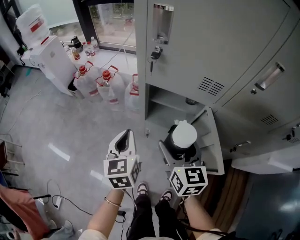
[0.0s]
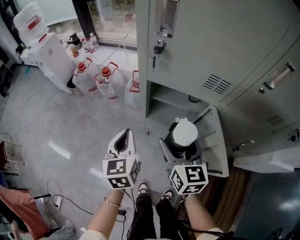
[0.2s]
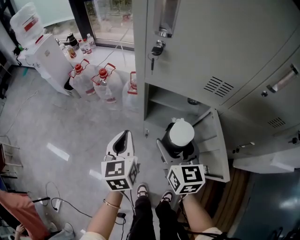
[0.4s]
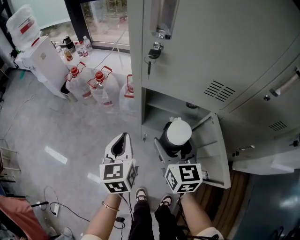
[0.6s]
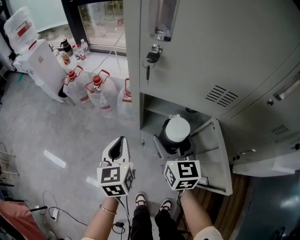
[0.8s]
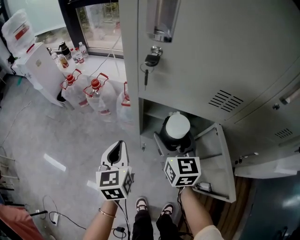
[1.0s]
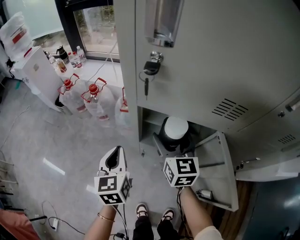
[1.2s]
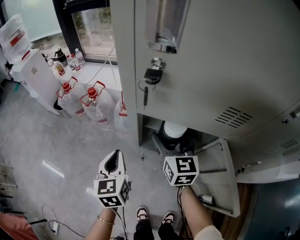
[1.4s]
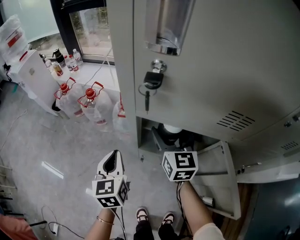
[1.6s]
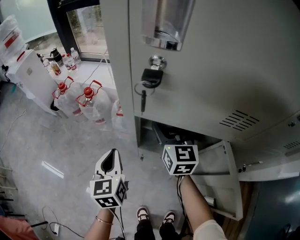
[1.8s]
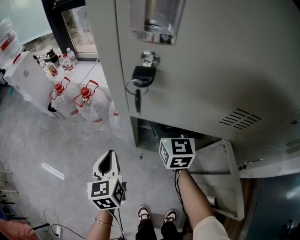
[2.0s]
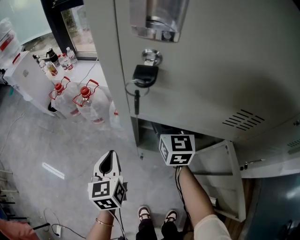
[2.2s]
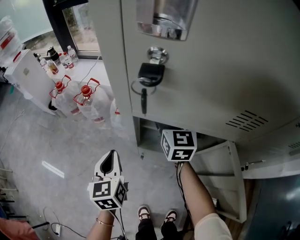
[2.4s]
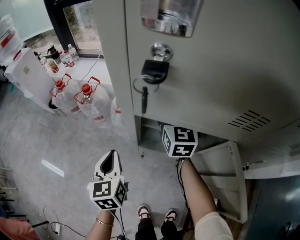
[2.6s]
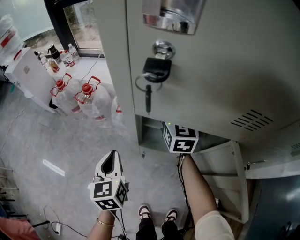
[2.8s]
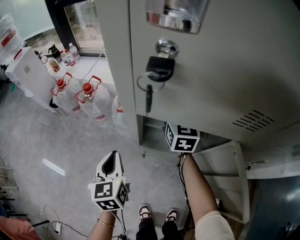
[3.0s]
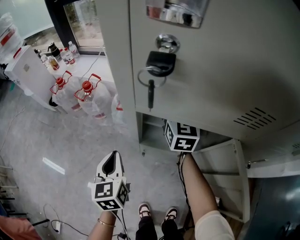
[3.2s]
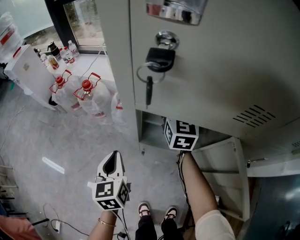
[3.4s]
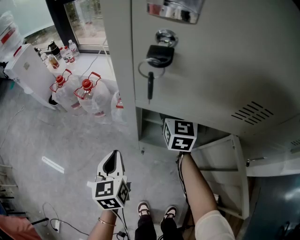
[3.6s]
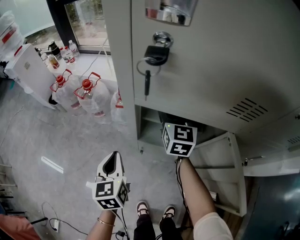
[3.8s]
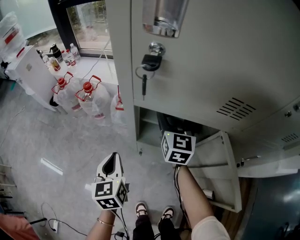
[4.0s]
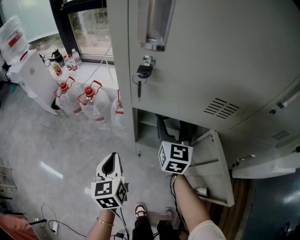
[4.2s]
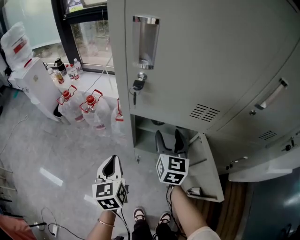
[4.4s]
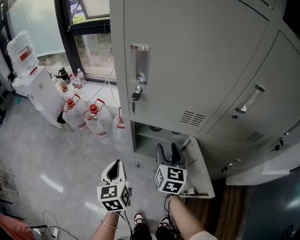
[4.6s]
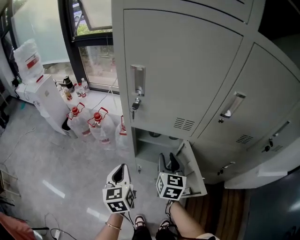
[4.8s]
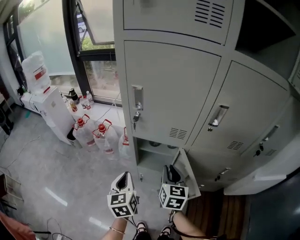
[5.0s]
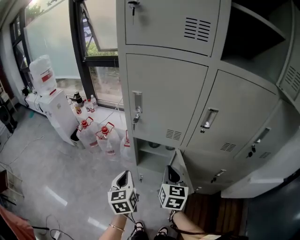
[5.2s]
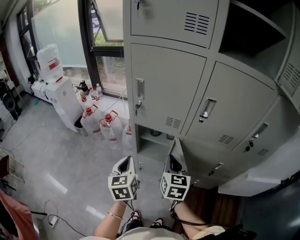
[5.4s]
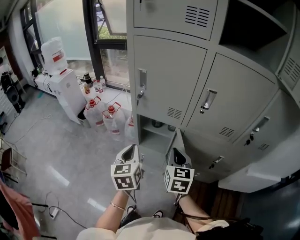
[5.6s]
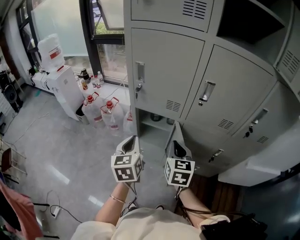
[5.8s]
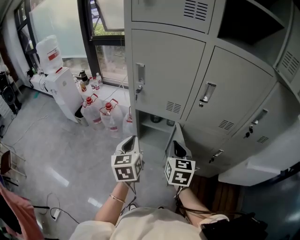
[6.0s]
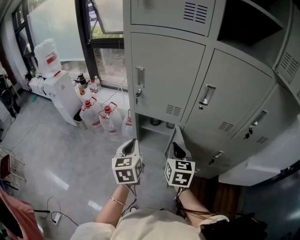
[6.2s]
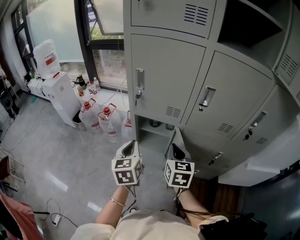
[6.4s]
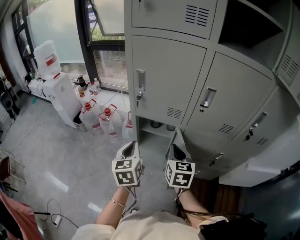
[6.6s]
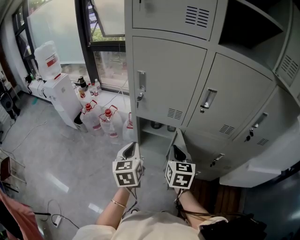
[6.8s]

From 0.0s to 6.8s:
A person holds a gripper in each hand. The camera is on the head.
From 0.0s to 1.4s: The right gripper shifts some 20 cm forward and downward; the left gripper moves downward and forward, about 15 cm.
From 1.4s to 2.8s: The right gripper goes roughly 10 cm forward.
From 2.8s to 4.0s: The right gripper is displaced backward by approximately 5 cm.
From 4.0s to 5.4s: The right gripper is displaced backward and upward by roughly 30 cm, and closes. Meanwhile the left gripper is displaced upward and backward by about 25 cm.
From 5.4s to 6.8s: There are only small adjustments of the grippers.

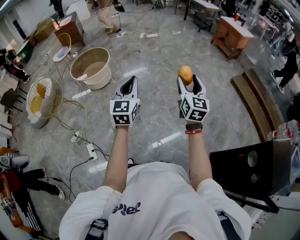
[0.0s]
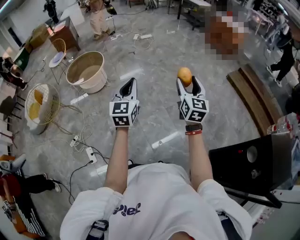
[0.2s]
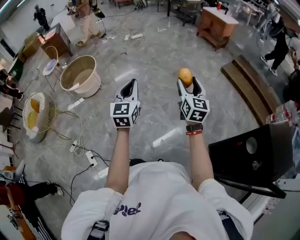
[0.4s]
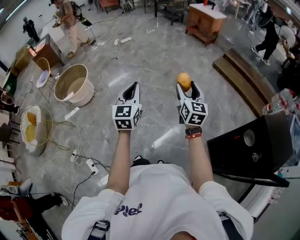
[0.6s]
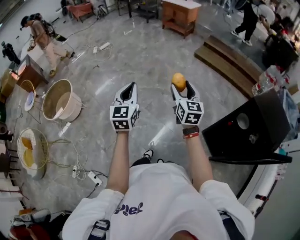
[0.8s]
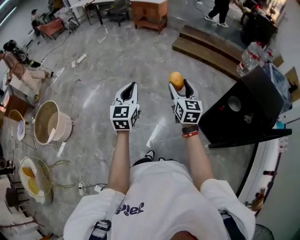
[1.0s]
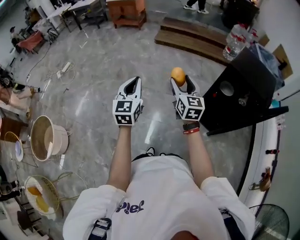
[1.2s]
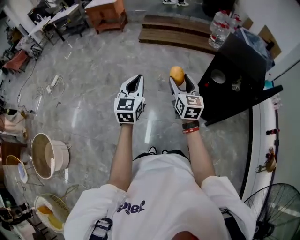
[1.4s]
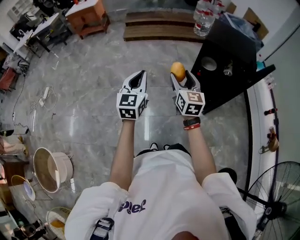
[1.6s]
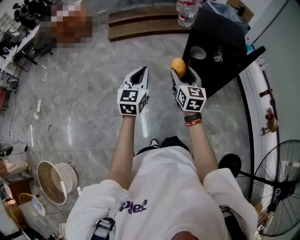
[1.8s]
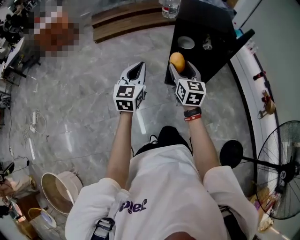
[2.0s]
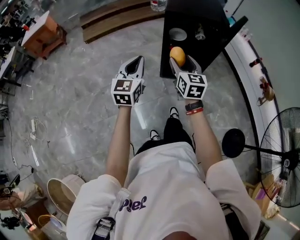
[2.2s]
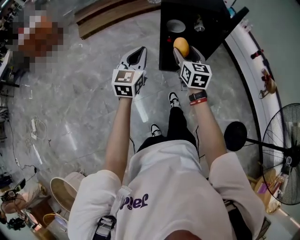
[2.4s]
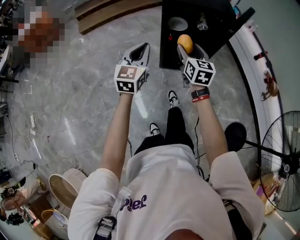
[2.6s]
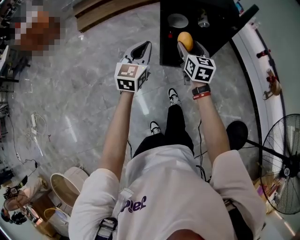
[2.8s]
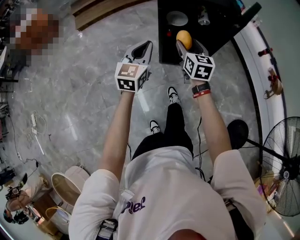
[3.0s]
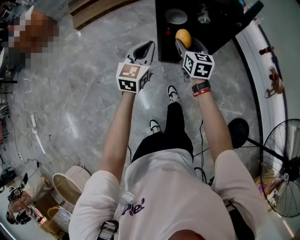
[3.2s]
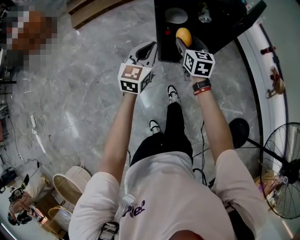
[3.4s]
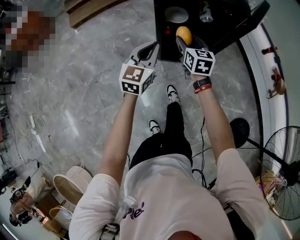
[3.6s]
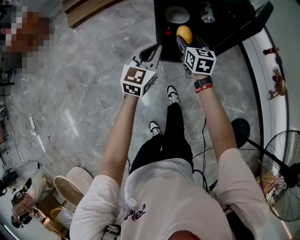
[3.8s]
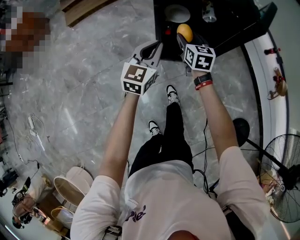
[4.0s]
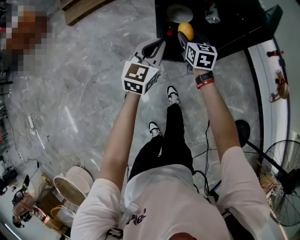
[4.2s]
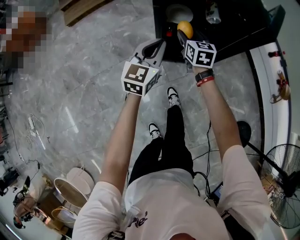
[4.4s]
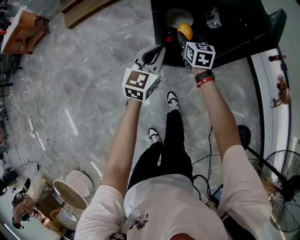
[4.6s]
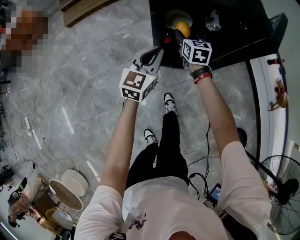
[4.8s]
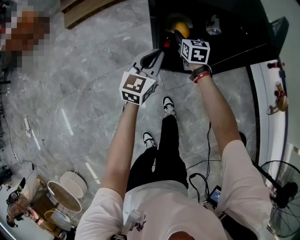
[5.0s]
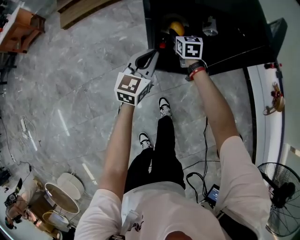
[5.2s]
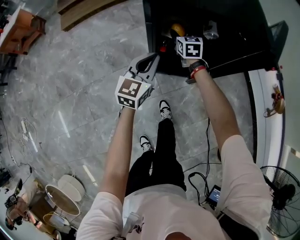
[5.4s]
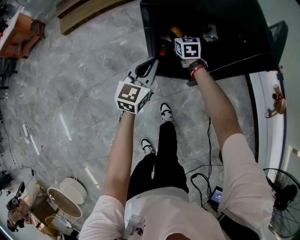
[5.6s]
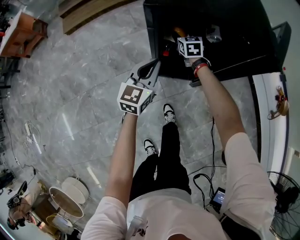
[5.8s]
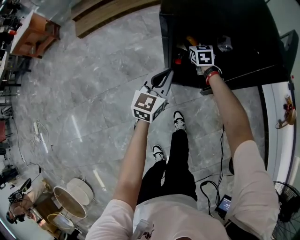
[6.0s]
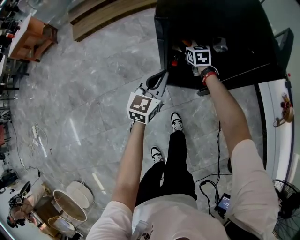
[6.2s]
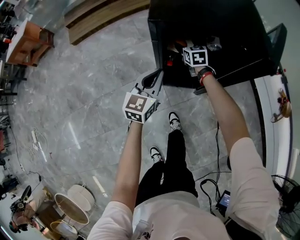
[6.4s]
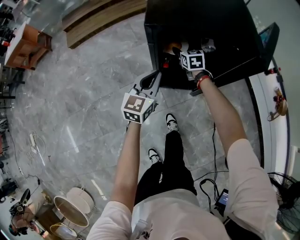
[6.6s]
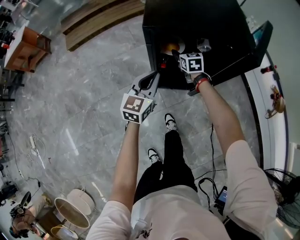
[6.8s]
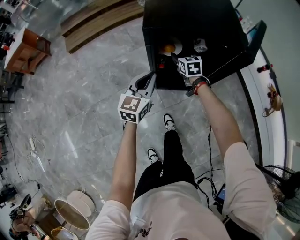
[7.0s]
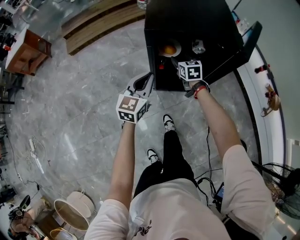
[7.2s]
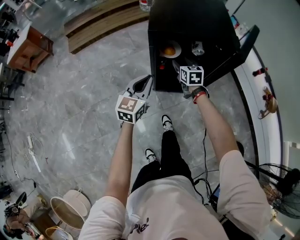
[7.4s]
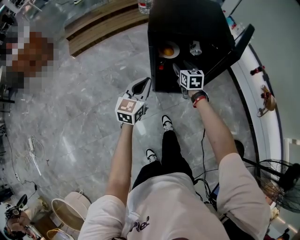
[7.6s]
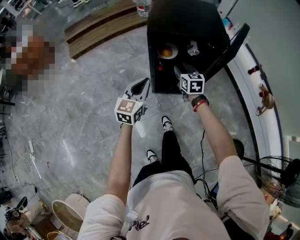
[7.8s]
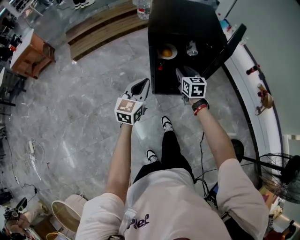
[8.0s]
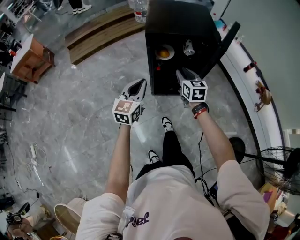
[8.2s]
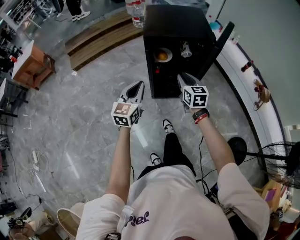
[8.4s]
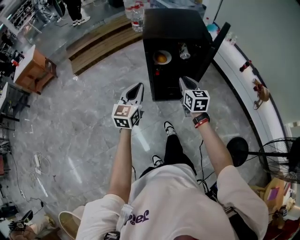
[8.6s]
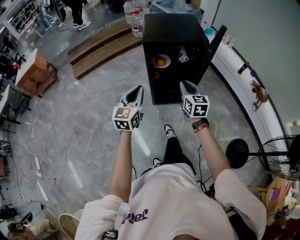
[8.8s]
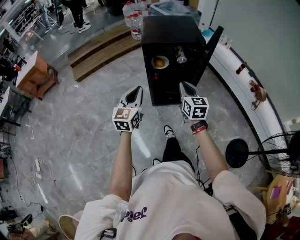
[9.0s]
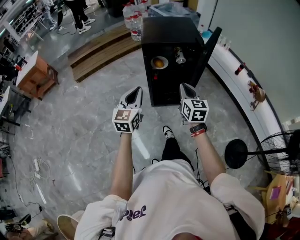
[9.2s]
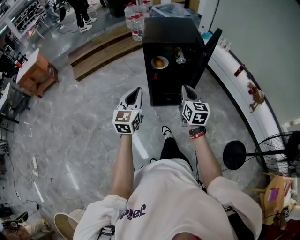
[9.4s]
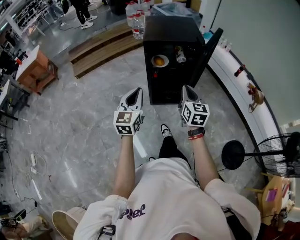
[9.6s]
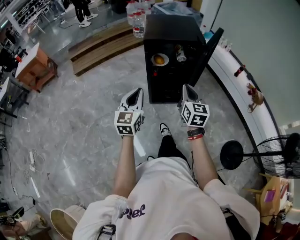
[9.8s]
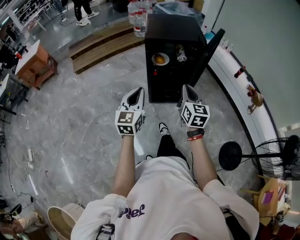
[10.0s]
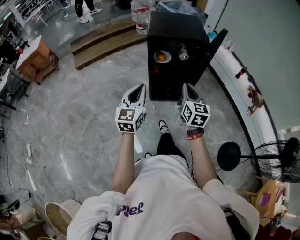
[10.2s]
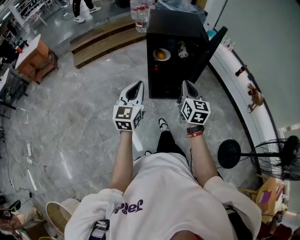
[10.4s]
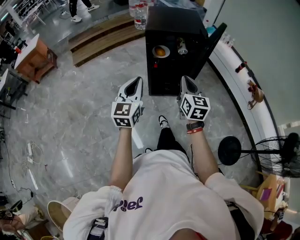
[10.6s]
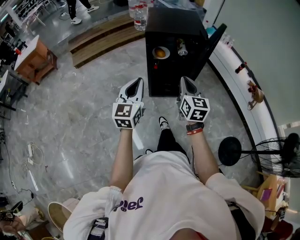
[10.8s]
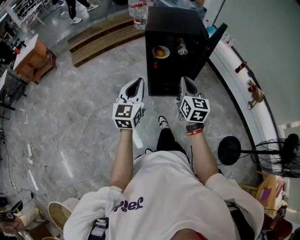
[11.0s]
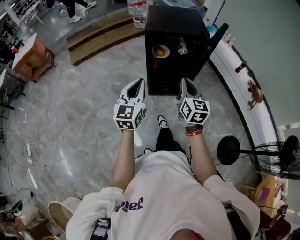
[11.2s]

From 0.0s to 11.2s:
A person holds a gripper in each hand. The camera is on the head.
From 0.0s to 1.6s: The left gripper moves approximately 50 cm, and changes its angle by about 70 degrees, while the right gripper shifts by approximately 40 cm, and turns by roughly 60 degrees.
From 1.6s to 3.2s: The right gripper ends up approximately 35 cm from where it was, and swivels some 30 degrees; the left gripper ends up approximately 35 cm from where it was, and rotates roughly 30 degrees.
From 3.2s to 4.8s: Both grippers move forward and downward, about 25 cm.
From 4.8s to 6.4s: The right gripper travels forward by some 10 cm.
From 6.4s to 8.0s: The two grippers go roughly 25 cm backward and upward. The right gripper closes.
From 8.0s to 9.6s: Both grippers move backward and upward, roughly 25 cm. The right gripper closes.
From 9.6s to 11.2s: There are only small adjustments of the grippers.

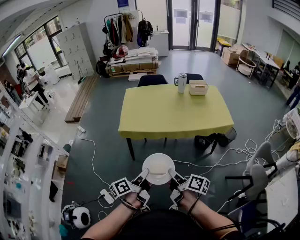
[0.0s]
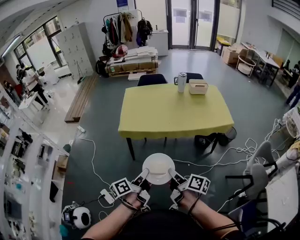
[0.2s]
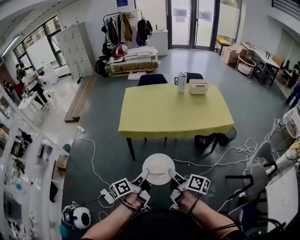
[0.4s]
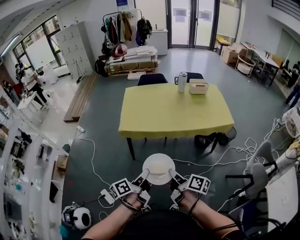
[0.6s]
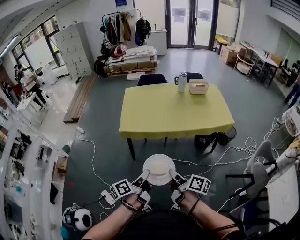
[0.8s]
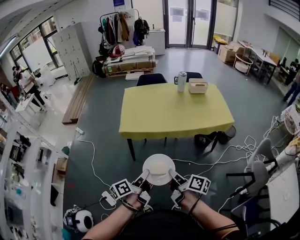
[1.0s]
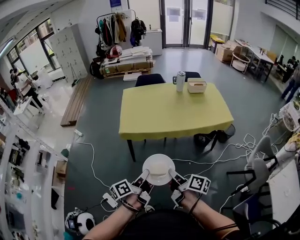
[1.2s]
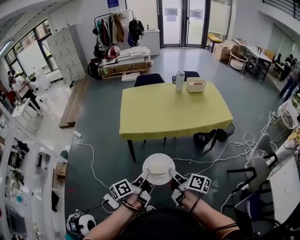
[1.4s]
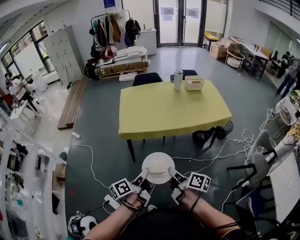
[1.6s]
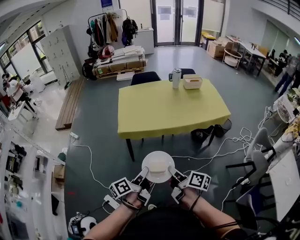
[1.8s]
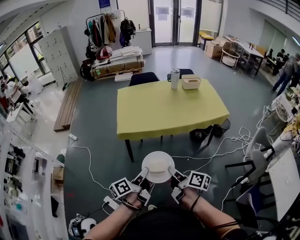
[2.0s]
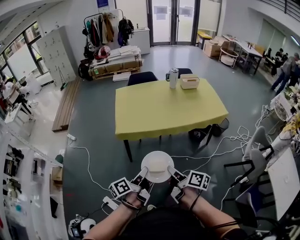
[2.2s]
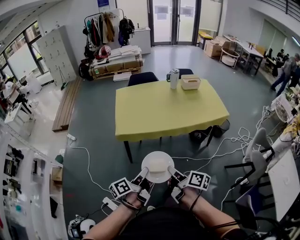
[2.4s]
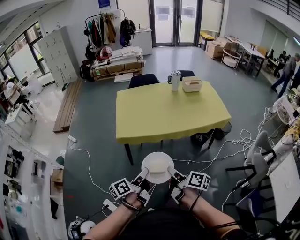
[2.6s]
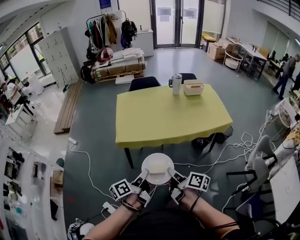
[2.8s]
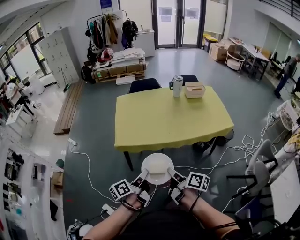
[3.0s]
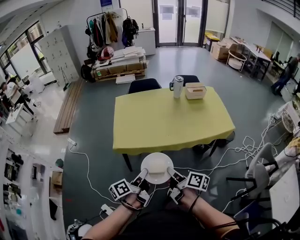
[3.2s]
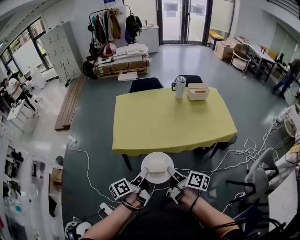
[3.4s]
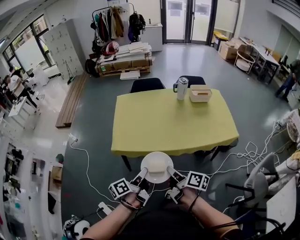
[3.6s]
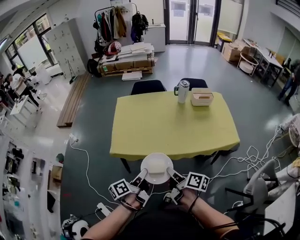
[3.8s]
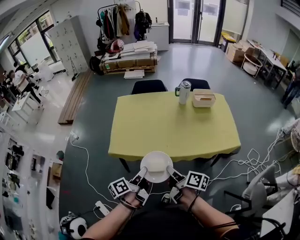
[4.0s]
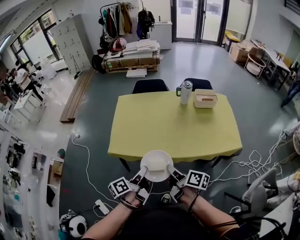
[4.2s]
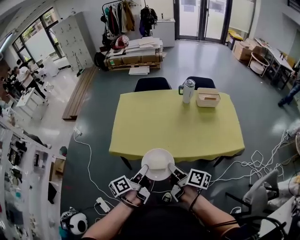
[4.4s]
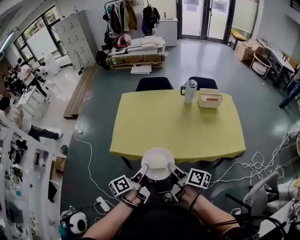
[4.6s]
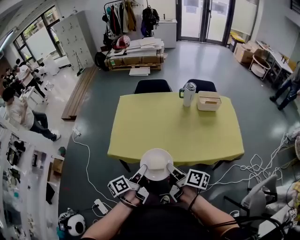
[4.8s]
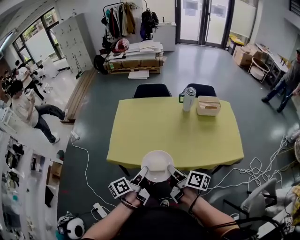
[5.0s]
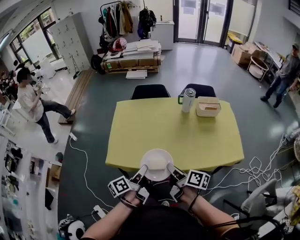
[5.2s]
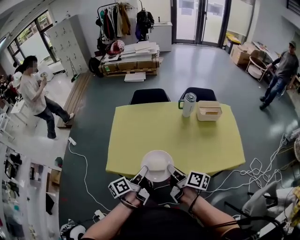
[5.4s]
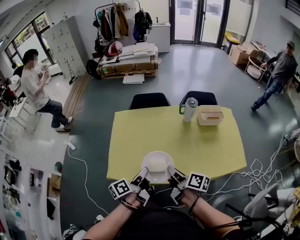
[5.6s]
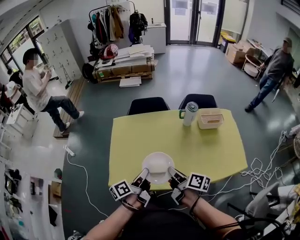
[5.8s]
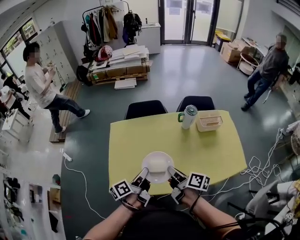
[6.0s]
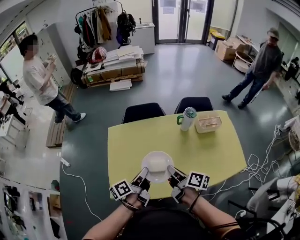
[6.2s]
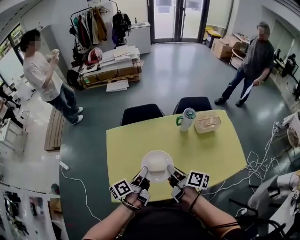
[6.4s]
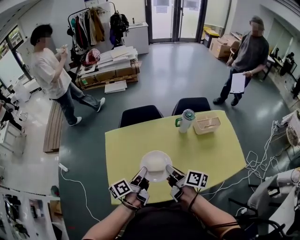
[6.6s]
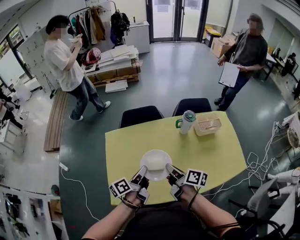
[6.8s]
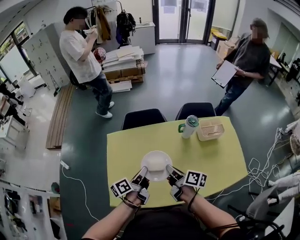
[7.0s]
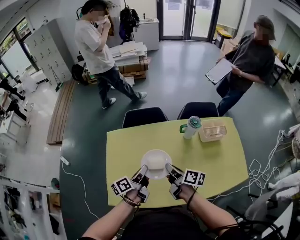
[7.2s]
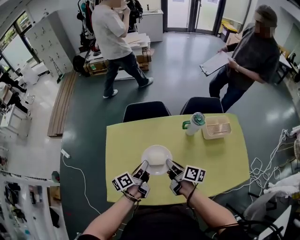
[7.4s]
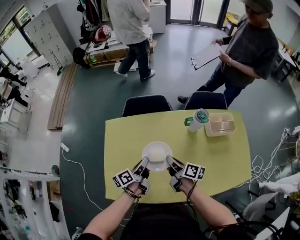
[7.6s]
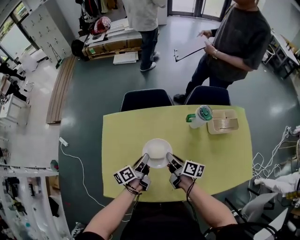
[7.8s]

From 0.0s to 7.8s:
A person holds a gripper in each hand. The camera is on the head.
From 0.0s to 1.6s: Both grippers move to the left, about 10 cm.
From 1.6s to 3.2s: The grippers both shift forward by approximately 15 cm.
From 3.2s to 4.6s: Both grippers travel together forward and to the right, approximately 20 cm.
From 4.6s to 6.2s: The grippers both shift forward by some 30 cm.
From 6.2s to 7.8s: Both grippers travel together downward and forward, roughly 25 cm.
